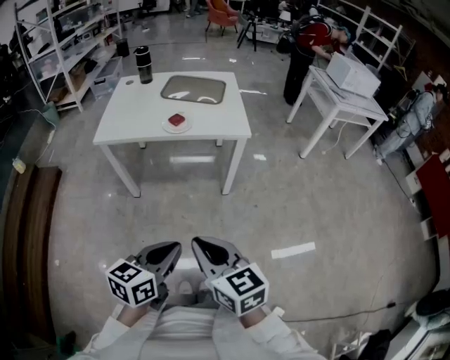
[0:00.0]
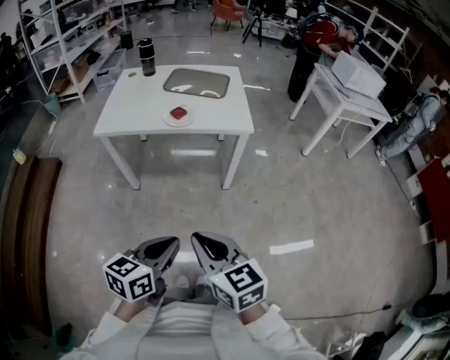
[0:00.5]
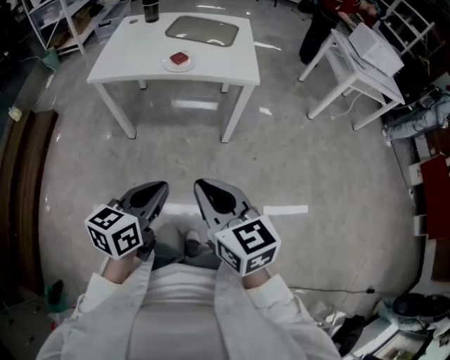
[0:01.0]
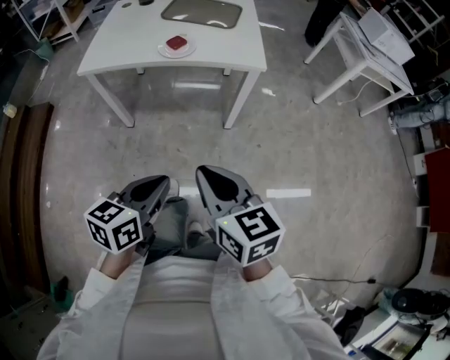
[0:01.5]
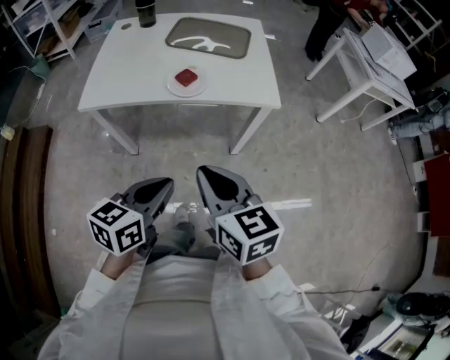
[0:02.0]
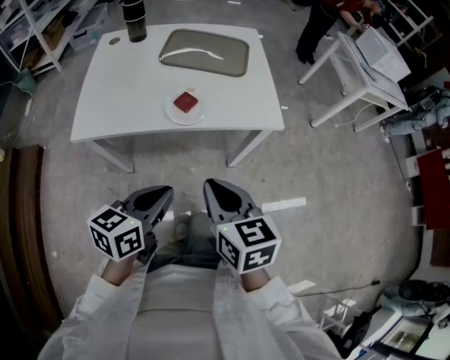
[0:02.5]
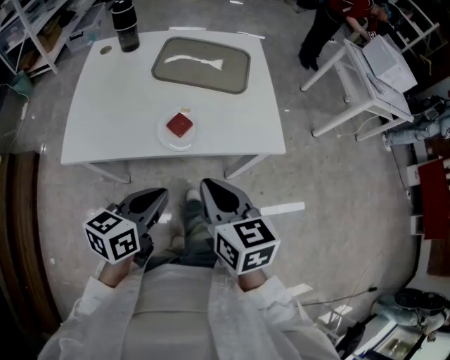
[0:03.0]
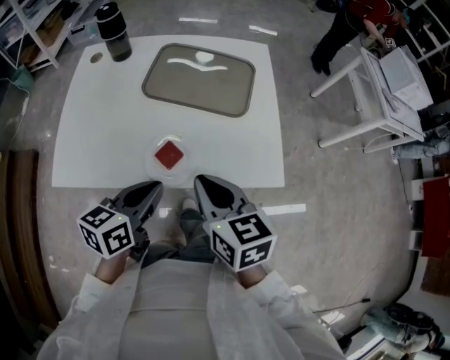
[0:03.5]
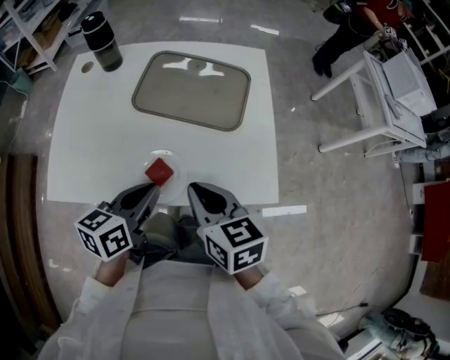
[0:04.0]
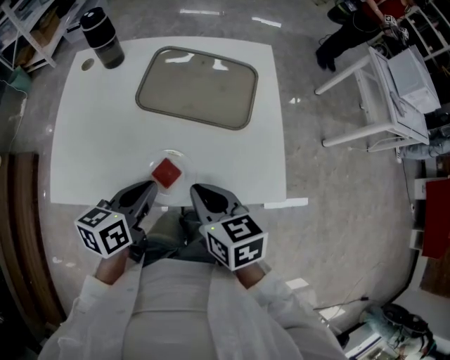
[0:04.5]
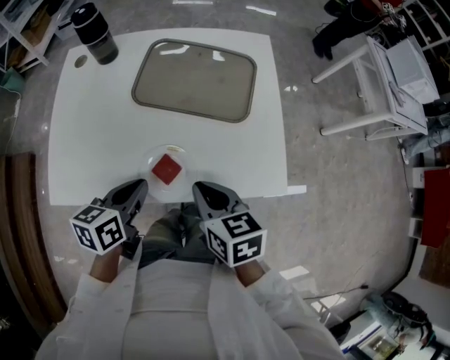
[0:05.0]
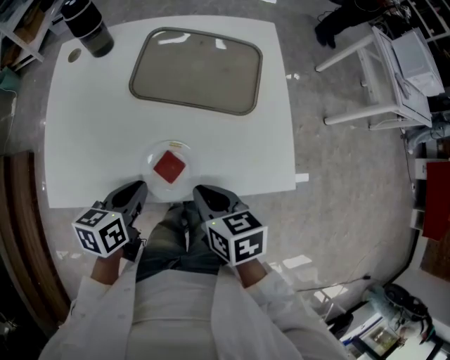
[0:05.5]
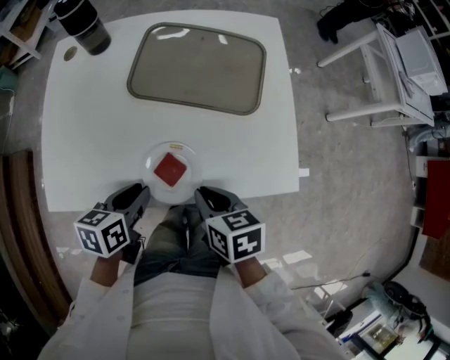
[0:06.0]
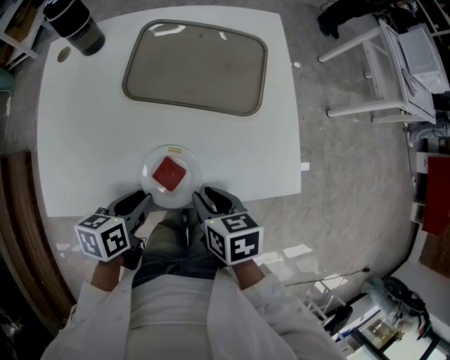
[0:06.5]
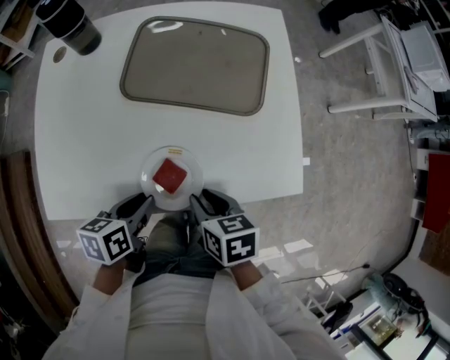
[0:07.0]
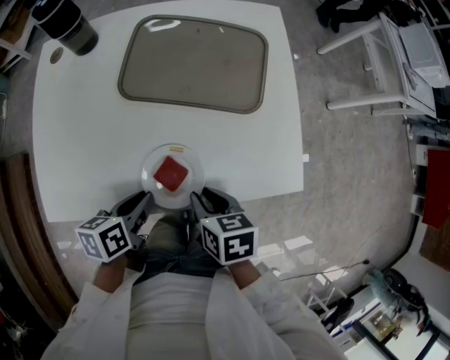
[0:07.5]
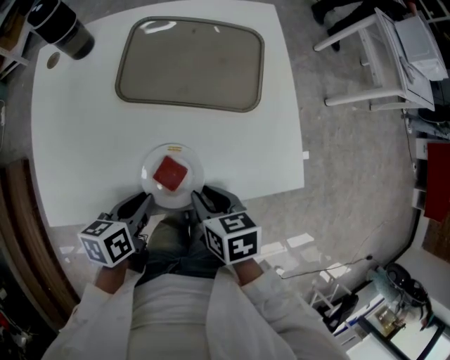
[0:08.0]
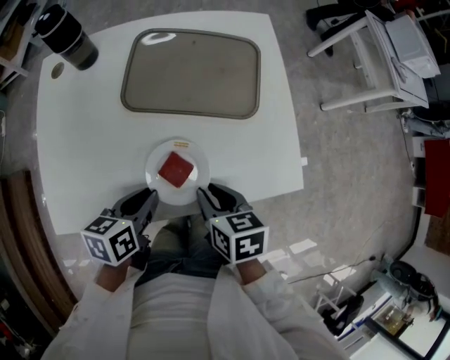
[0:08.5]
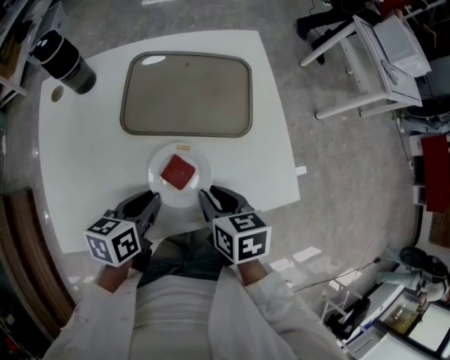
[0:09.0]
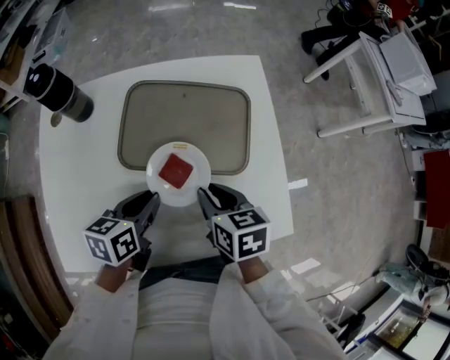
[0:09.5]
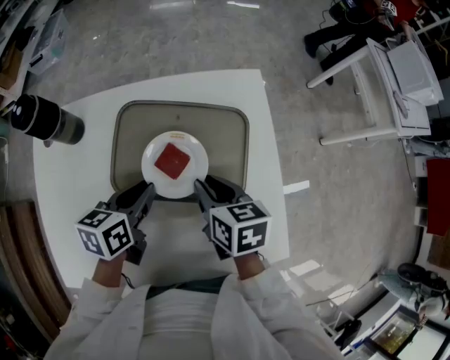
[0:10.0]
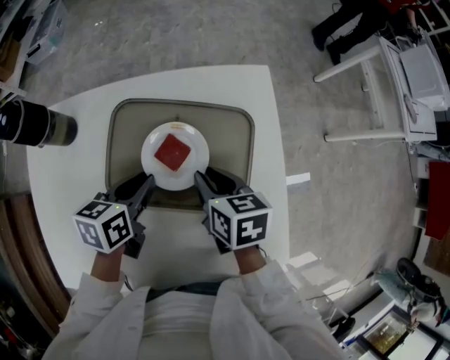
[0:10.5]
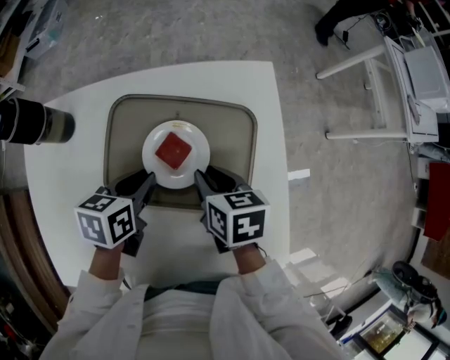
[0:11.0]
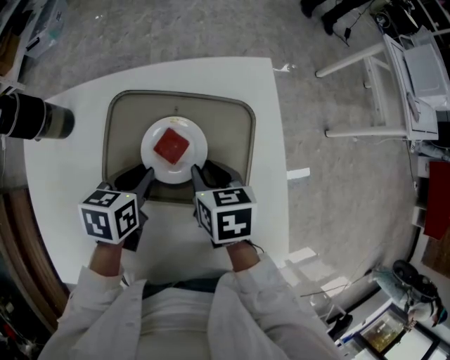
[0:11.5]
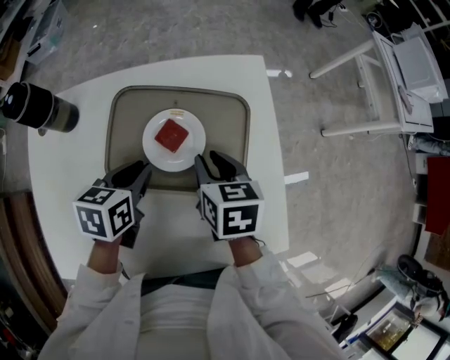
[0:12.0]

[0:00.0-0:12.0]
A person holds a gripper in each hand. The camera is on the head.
0:00.0 to 0:02.0: The two grippers go about 25 cm forward.
0:02.0 to 0:04.0: Both grippers travel together forward, some 35 cm.
0:04.0 to 0:06.0: The right gripper goes roughly 10 cm downward, and rotates about 20 degrees. The left gripper shifts roughly 10 cm downward and to the left.
0:06.0 to 0:08.0: The grippers stay close to where they were, moving slightly.
0:08.0 to 0:10.0: Both grippers move forward, some 25 cm.
0:10.0 to 0:12.0: The grippers make only small movements.

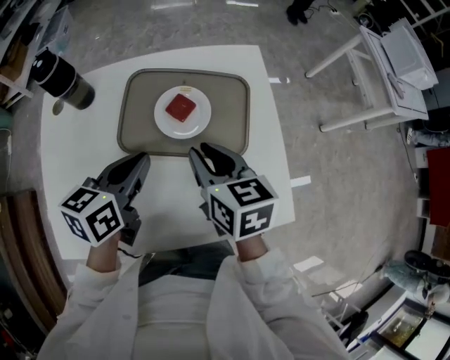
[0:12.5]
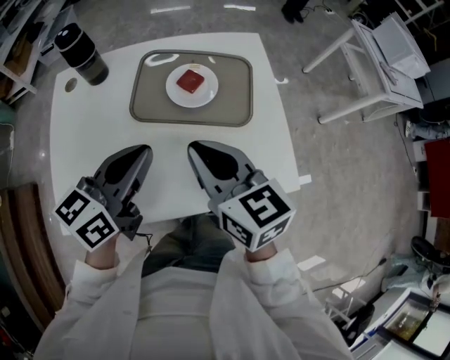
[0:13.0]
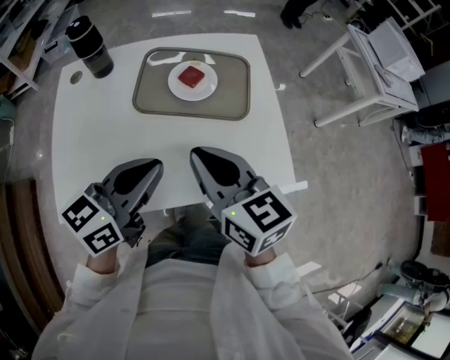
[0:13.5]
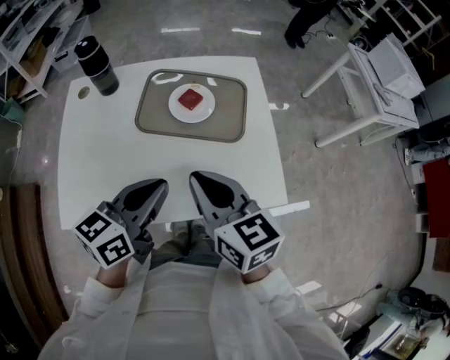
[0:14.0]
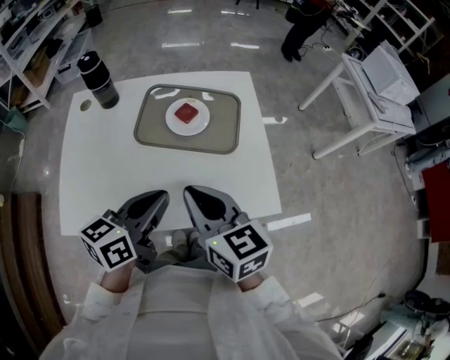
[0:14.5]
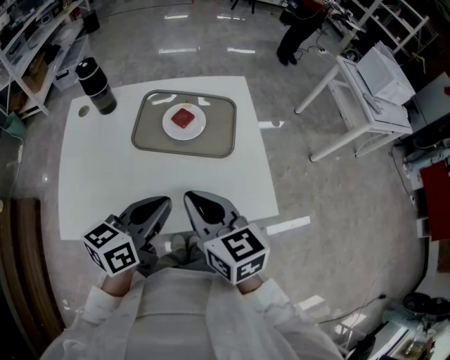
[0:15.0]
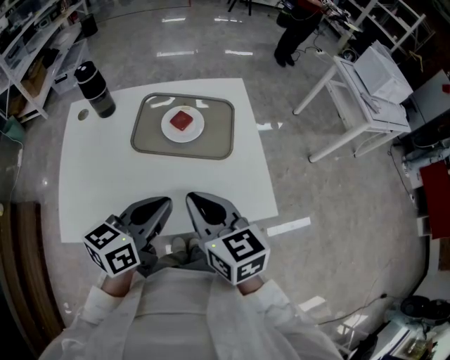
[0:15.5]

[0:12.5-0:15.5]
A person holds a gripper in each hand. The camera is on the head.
0:12.5 to 0:14.0: The grippers both shift backward and upward by some 20 cm.
0:14.0 to 0:15.5: The grippers stay close to where they were, moving slightly.

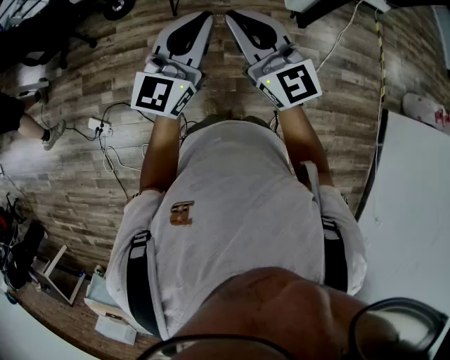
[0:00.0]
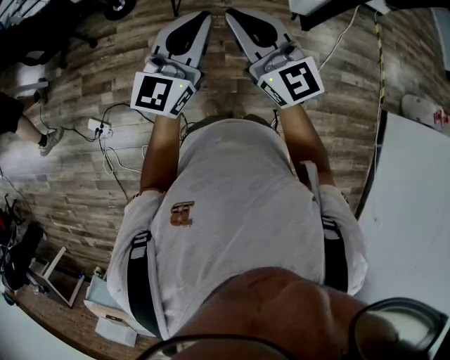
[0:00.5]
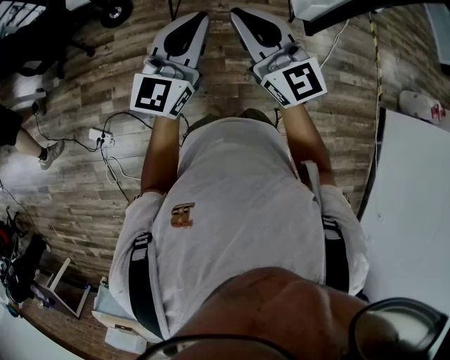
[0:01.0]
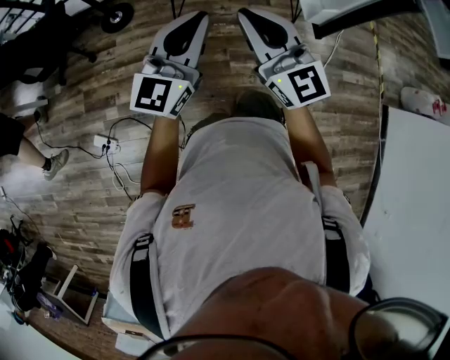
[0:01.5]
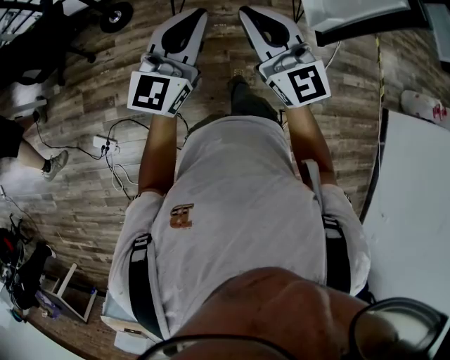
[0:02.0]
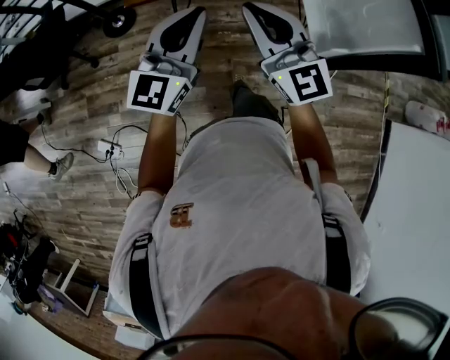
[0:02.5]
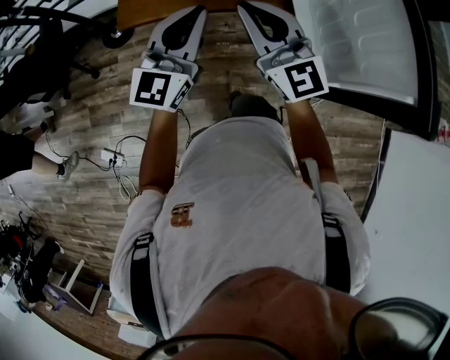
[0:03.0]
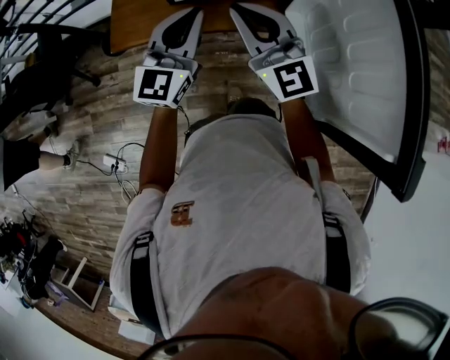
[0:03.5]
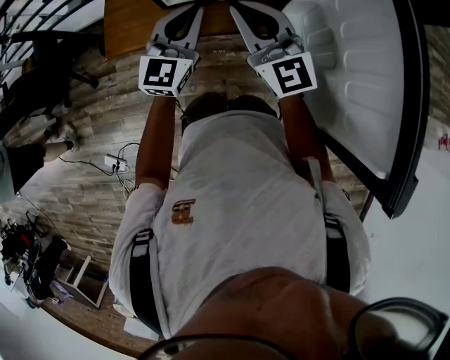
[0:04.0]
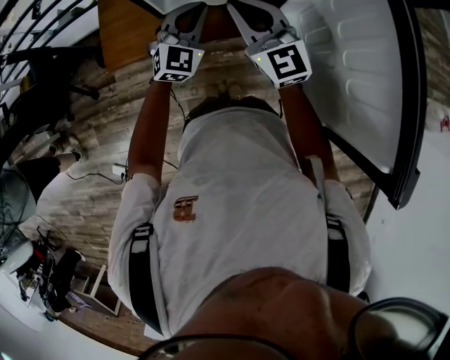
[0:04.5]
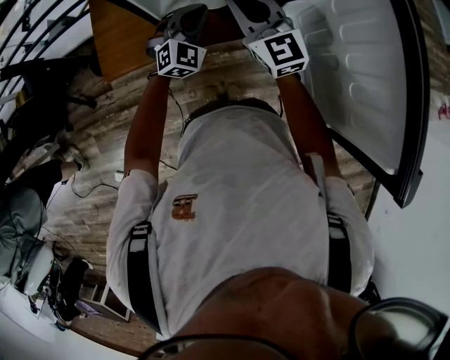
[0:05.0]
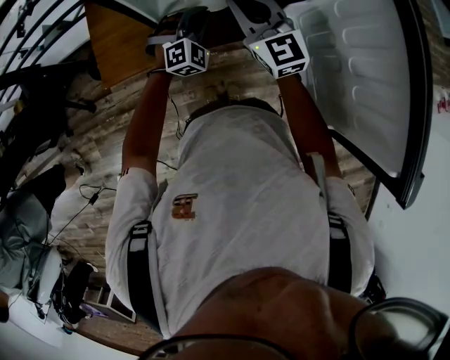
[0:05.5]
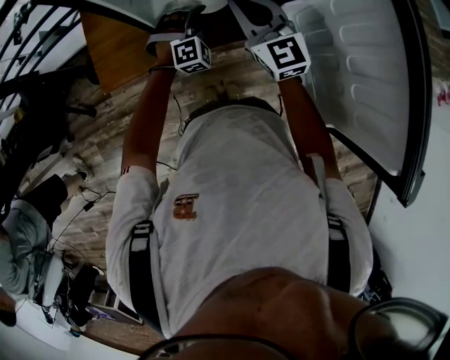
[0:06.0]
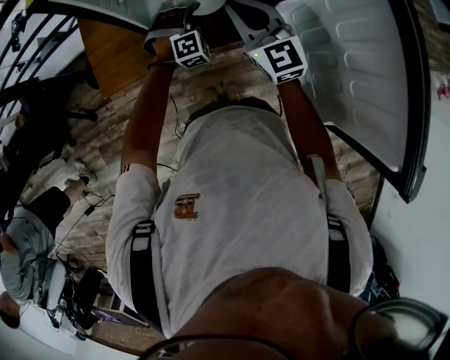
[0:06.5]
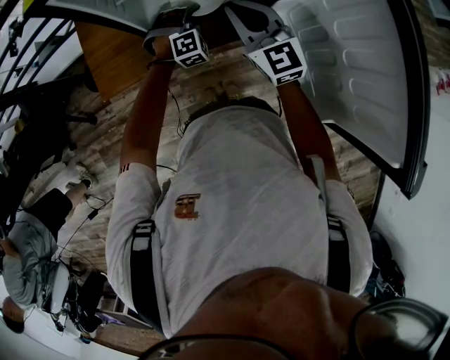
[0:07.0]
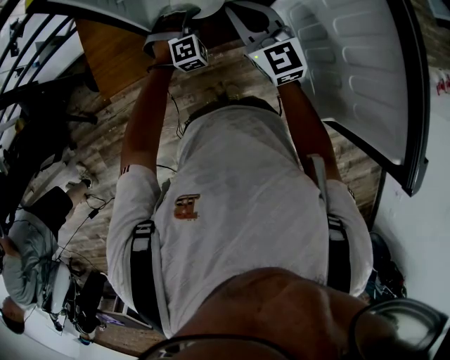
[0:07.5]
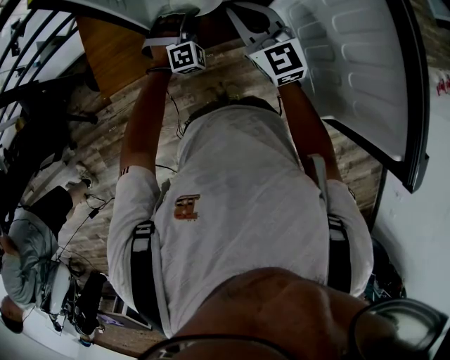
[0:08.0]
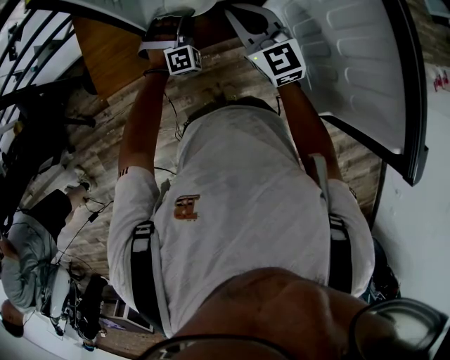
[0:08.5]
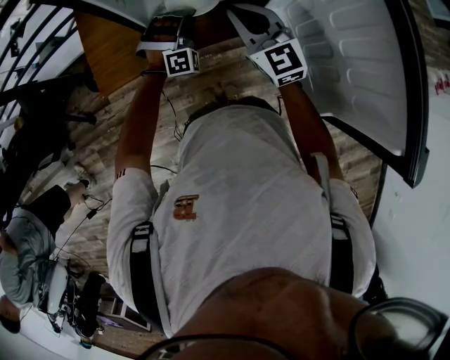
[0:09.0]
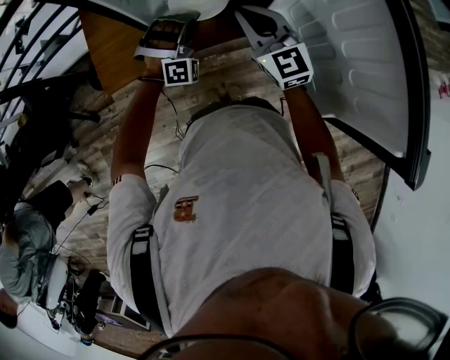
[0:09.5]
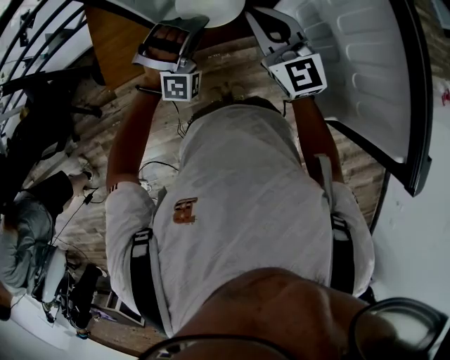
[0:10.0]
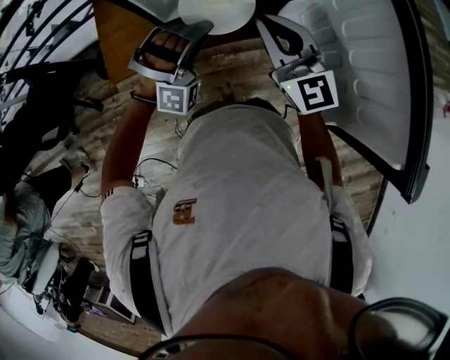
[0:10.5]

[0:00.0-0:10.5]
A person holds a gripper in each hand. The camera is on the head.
0:00.0 to 0:02.0: The right gripper moves forward and to the left, some 15 cm; the left gripper goes approximately 15 cm to the left and forward.
0:02.0 to 0:04.0: Both grippers are carried forward, roughly 50 cm.
0:04.0 to 0:06.5: The right gripper moves forward and downward, about 10 cm, while the left gripper travels downward and forward by about 25 cm, rolls clockwise, seen from behind, by about 60 degrees, and opens its fingers.
0:06.5 to 0:08.5: The left gripper closes its fingers.
0:08.5 to 0:10.5: The left gripper heads upward and backward, covering roughly 15 cm, while the right gripper goes approximately 5 cm upward.

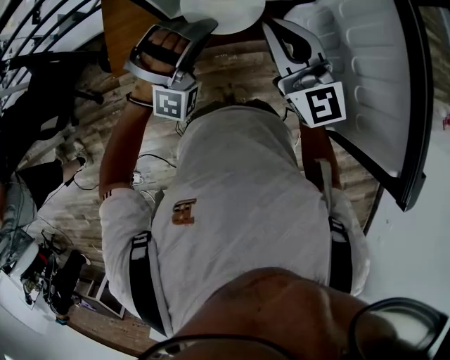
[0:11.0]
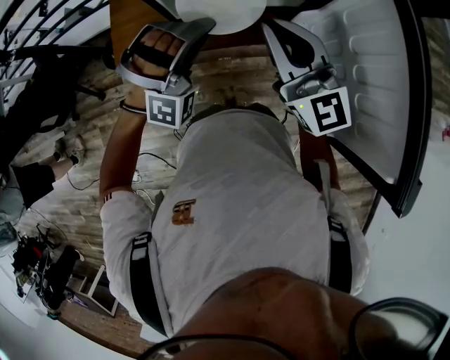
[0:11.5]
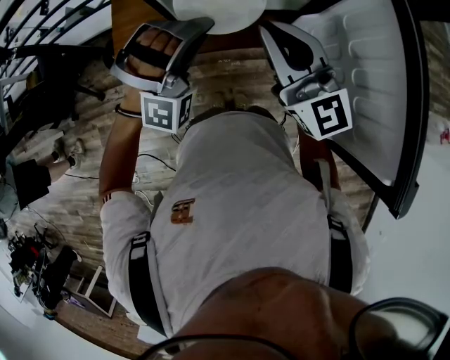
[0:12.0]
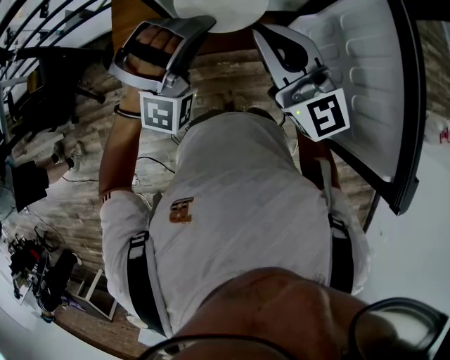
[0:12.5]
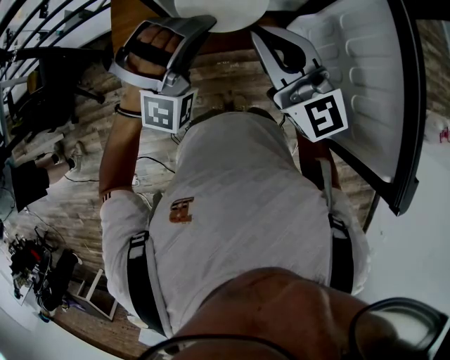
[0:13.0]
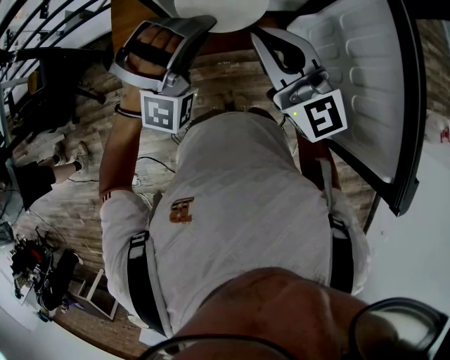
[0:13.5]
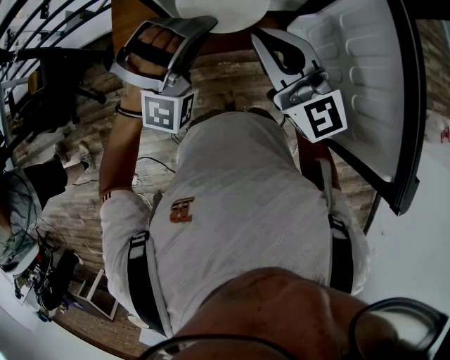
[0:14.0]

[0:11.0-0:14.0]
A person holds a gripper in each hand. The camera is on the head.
0:11.0 to 0:12.5: The left gripper goes roughly 5 cm upward.
0:12.5 to 0:14.0: Neither gripper changes place.
